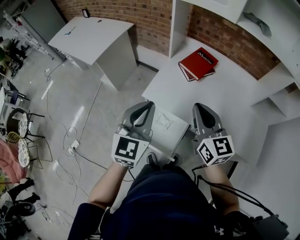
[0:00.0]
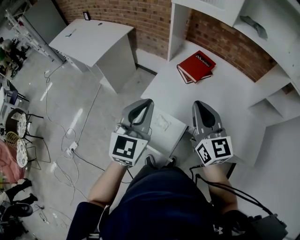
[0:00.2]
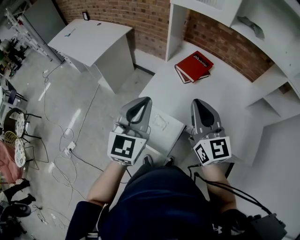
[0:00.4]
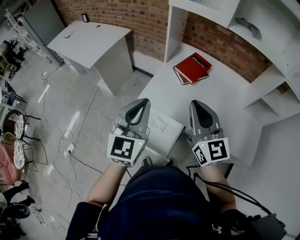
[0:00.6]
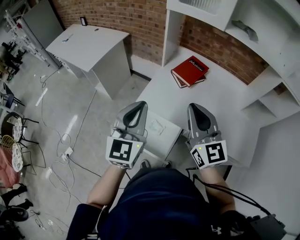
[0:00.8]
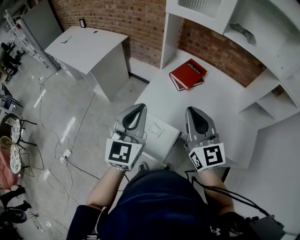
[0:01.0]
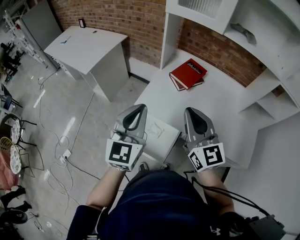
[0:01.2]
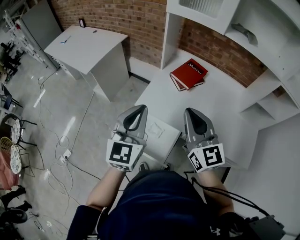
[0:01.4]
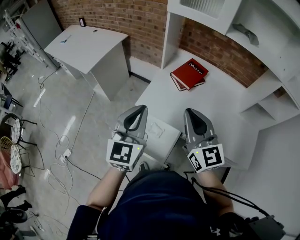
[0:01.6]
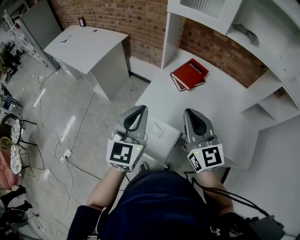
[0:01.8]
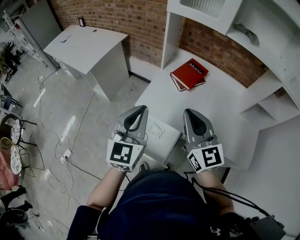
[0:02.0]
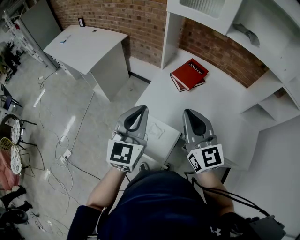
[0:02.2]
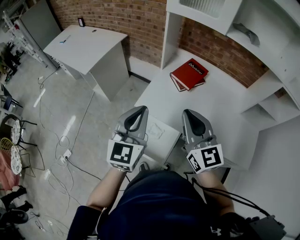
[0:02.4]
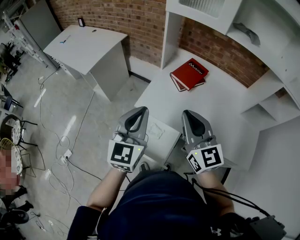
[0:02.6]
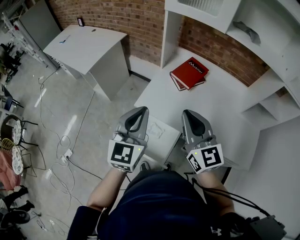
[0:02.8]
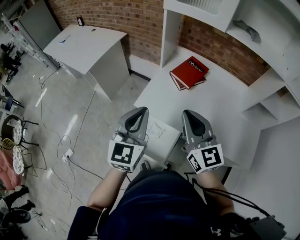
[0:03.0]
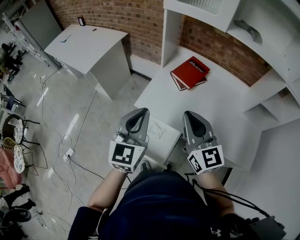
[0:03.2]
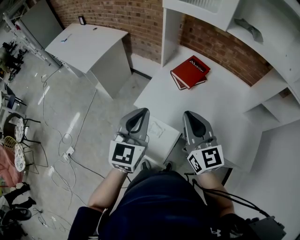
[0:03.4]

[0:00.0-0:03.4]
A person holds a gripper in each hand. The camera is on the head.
0.0 to 1.6 s: The right gripper changes place by roughly 5 cm.
1.6 to 3.4 s: The grippers move only a little.

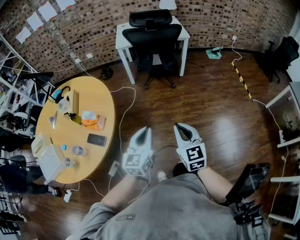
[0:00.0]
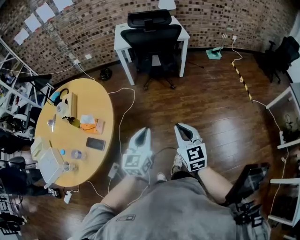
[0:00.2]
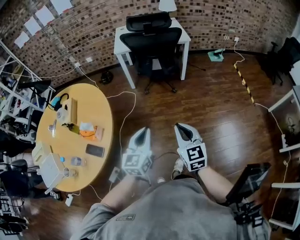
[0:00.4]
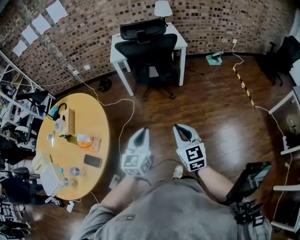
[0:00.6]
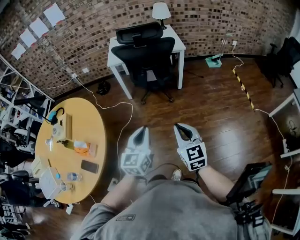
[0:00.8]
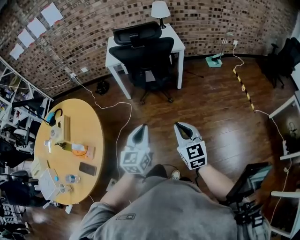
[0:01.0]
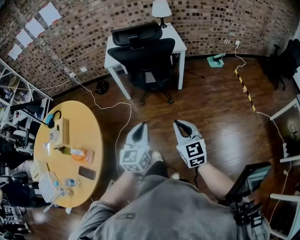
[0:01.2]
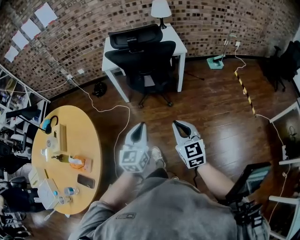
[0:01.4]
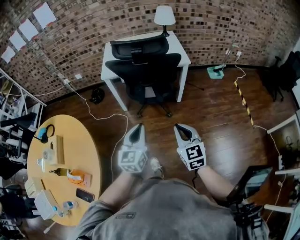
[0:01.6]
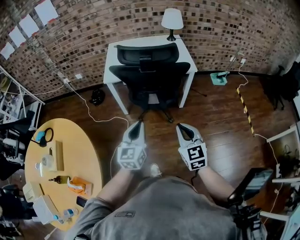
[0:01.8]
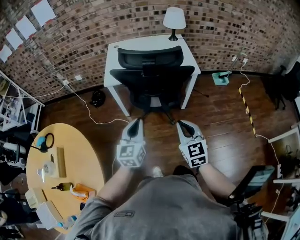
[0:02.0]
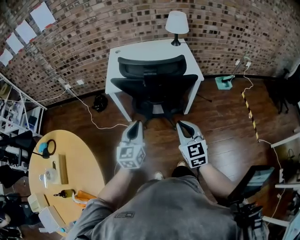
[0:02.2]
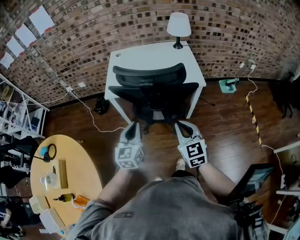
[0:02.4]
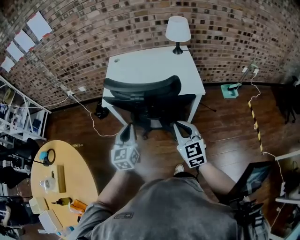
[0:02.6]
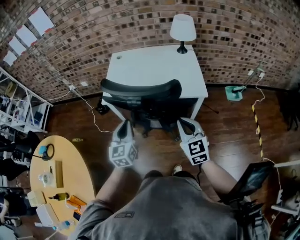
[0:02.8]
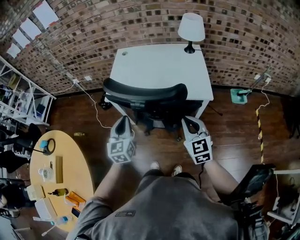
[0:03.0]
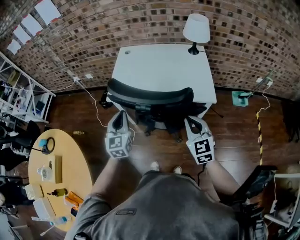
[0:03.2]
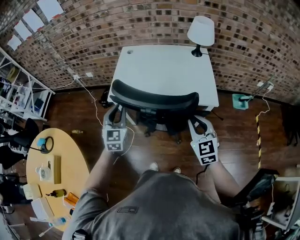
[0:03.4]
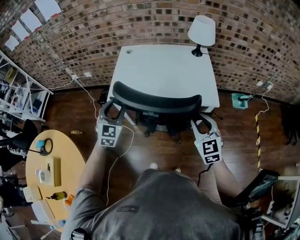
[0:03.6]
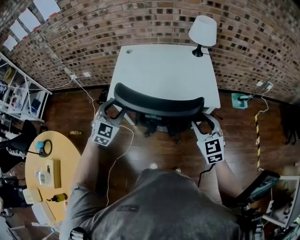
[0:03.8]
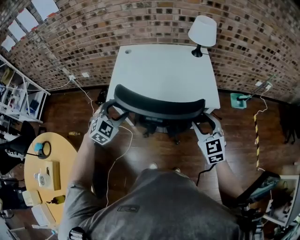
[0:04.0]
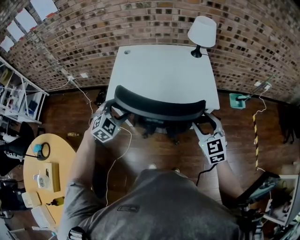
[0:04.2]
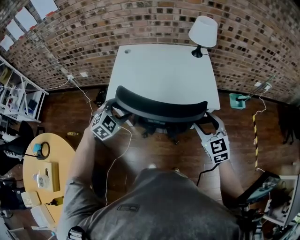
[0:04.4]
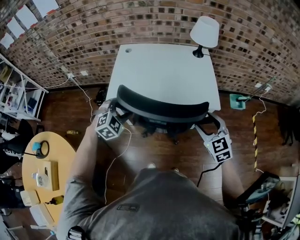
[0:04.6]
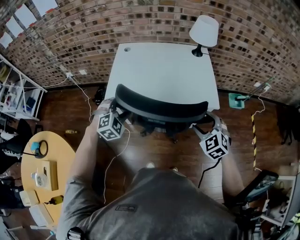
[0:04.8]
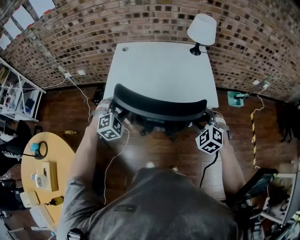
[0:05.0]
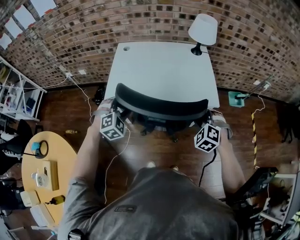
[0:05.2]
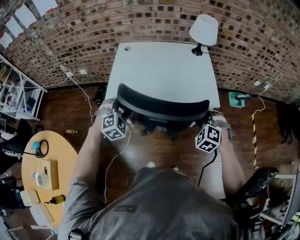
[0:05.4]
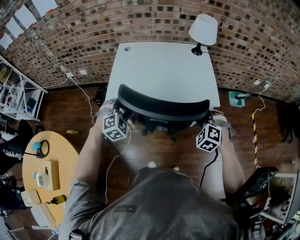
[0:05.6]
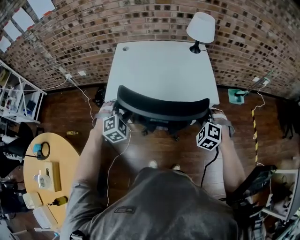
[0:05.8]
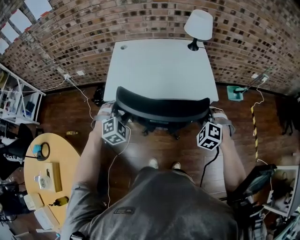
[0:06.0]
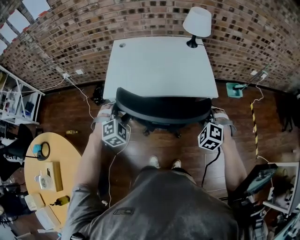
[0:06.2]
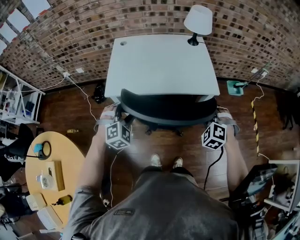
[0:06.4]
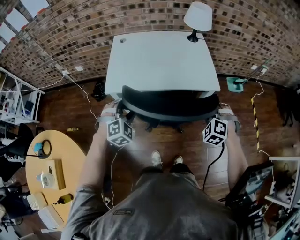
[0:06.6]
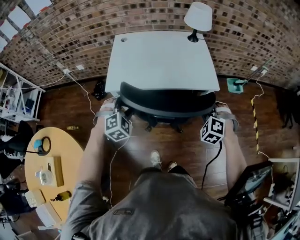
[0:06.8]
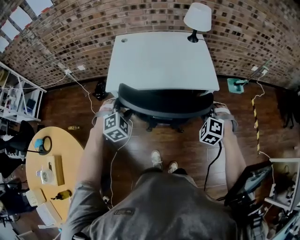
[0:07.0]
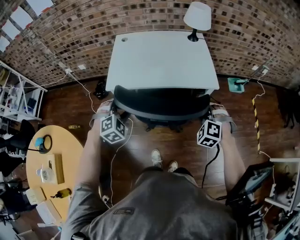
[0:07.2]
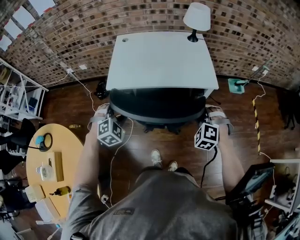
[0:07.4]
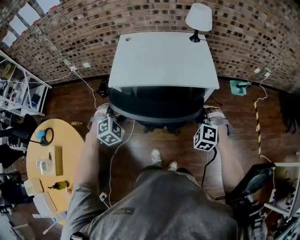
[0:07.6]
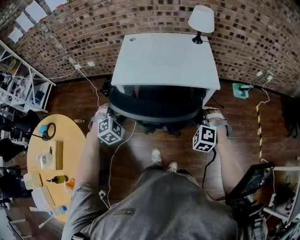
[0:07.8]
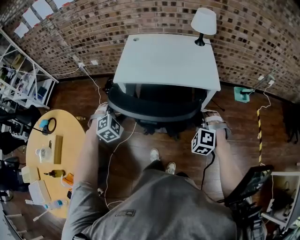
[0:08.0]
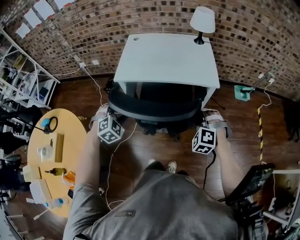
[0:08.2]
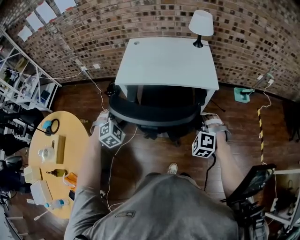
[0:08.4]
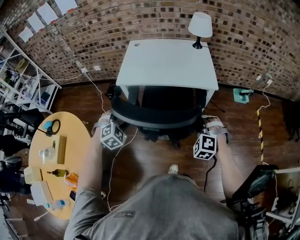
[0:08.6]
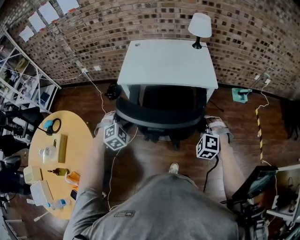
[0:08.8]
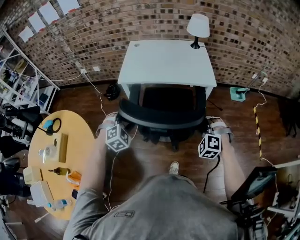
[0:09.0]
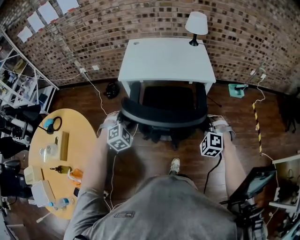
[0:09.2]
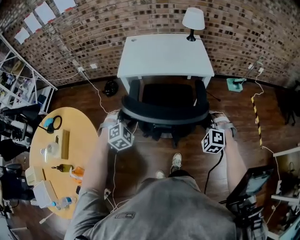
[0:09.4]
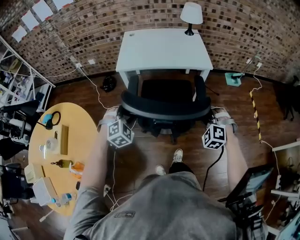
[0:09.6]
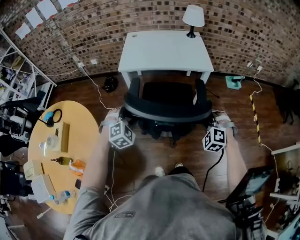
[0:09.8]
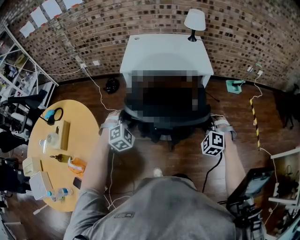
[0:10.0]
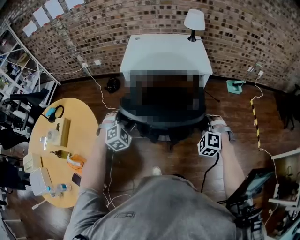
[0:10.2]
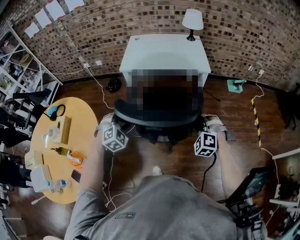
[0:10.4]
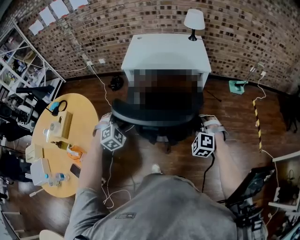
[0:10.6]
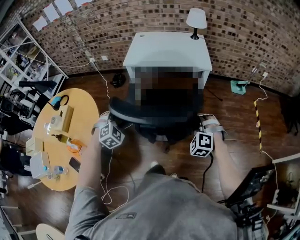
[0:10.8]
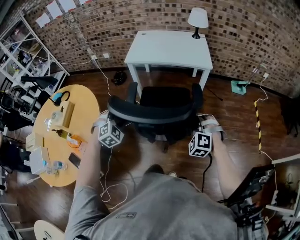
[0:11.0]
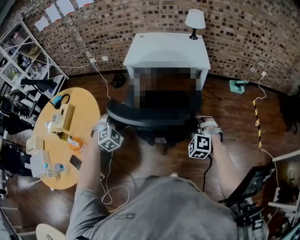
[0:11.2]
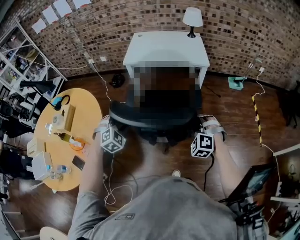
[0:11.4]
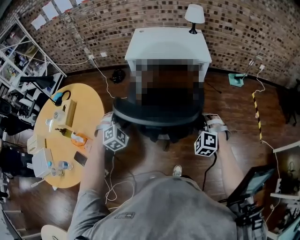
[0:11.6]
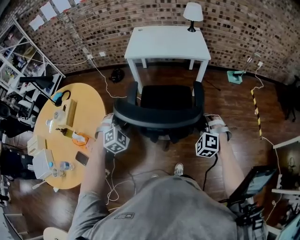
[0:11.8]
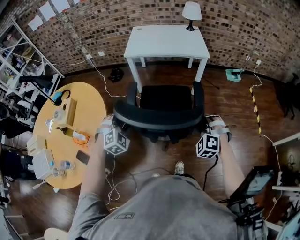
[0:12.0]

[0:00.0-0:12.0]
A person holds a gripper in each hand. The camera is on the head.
0.0 to 1.6 s: Both grippers move forward, some 35 cm.
1.6 to 3.0 s: The grippers both shift forward by approximately 35 cm. The left gripper changes its angle by approximately 20 degrees.
3.0 to 4.4 s: The right gripper is displaced forward by approximately 5 cm, and opens up. The left gripper is displaced forward by some 10 cm, rotates some 70 degrees, and opens up.
4.4 to 6.0 s: The right gripper is displaced downward by some 5 cm, and rotates around the line of its fingers by some 40 degrees, counterclockwise from behind.
6.0 to 7.6 s: The grippers both shift backward by roughly 10 cm.
7.6 to 9.0 s: The grippers both shift backward by about 15 cm.
9.0 to 10.4 s: Both grippers travel together backward, about 15 cm.
10.4 to 12.0 s: Both grippers move backward, roughly 15 cm.

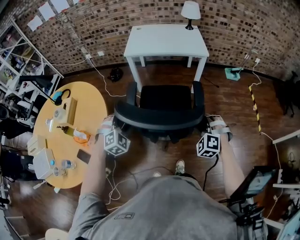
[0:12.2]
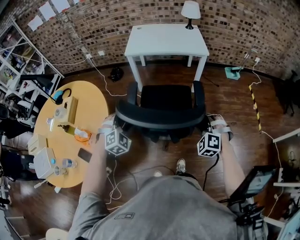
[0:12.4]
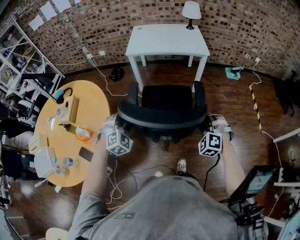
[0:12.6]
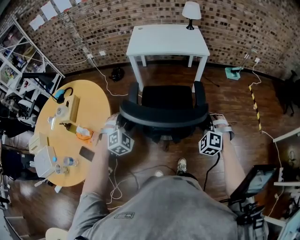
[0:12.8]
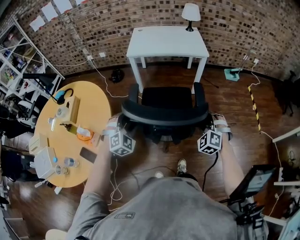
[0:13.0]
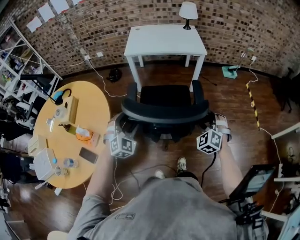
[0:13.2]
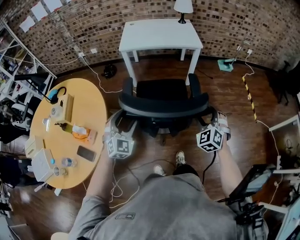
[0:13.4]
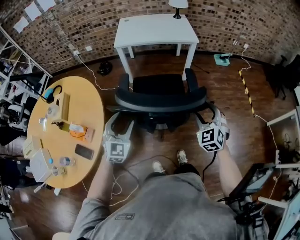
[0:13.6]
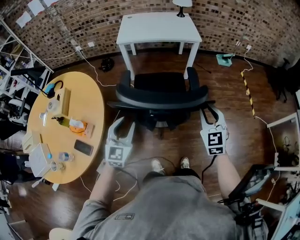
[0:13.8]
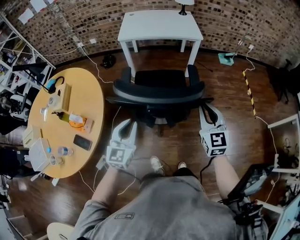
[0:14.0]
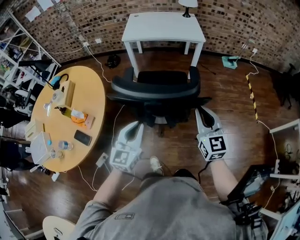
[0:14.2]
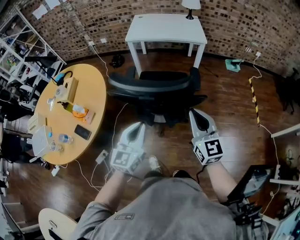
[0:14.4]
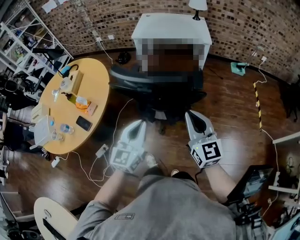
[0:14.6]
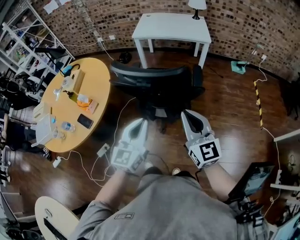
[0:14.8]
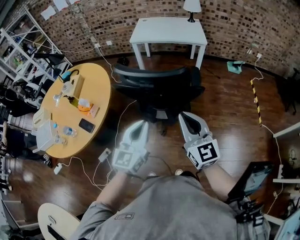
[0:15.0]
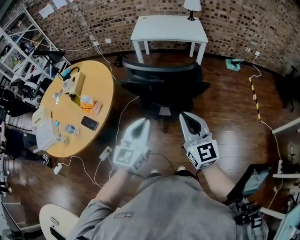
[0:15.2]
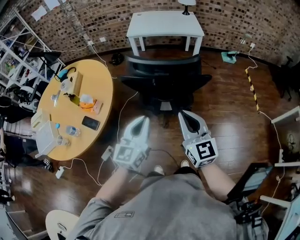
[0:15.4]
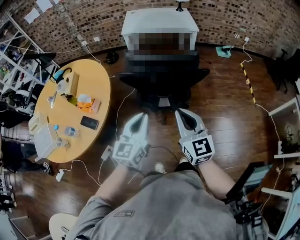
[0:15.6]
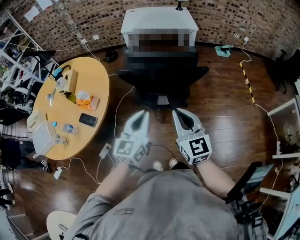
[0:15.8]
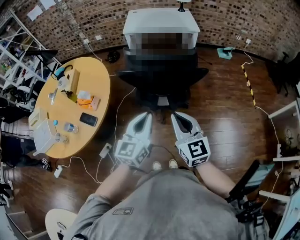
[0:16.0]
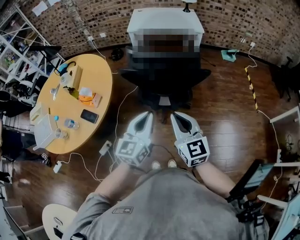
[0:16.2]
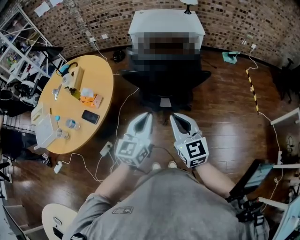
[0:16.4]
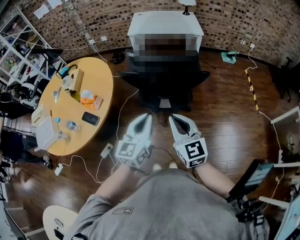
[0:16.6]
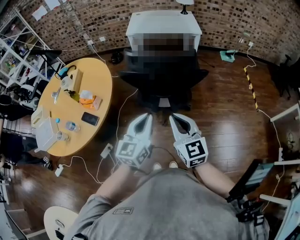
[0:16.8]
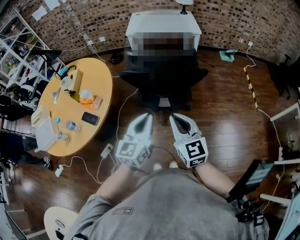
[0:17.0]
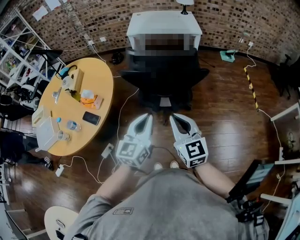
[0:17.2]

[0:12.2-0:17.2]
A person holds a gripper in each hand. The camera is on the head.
12.2 to 13.8 s: The left gripper travels backward by about 10 cm, rotates around the line of its fingers by about 40 degrees, counterclockwise from behind, and closes its fingers. Meanwhile the right gripper travels upward and backward by some 10 cm, rotates around the line of its fingers by about 50 degrees, clockwise from behind, and opens, then closes again.
13.8 to 15.6 s: The left gripper moves backward and upward, some 20 cm, swivels roughly 20 degrees, and closes. Meanwhile the right gripper is displaced backward and to the left by about 25 cm, and turns by about 30 degrees.
15.6 to 17.2 s: The grippers make only small movements.

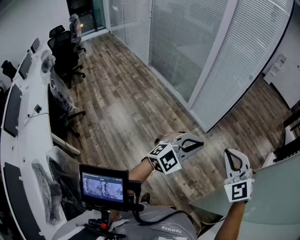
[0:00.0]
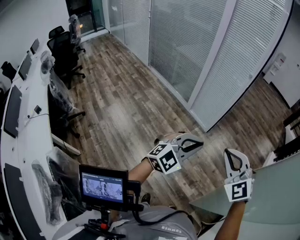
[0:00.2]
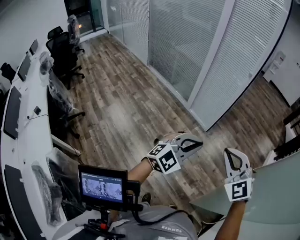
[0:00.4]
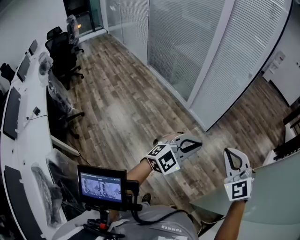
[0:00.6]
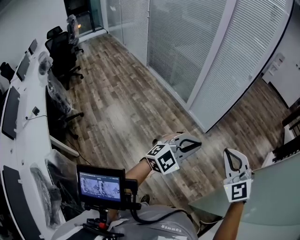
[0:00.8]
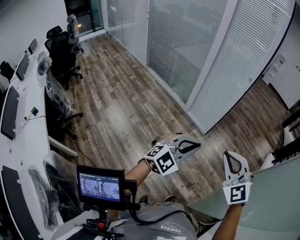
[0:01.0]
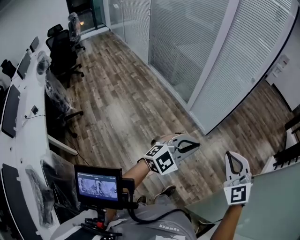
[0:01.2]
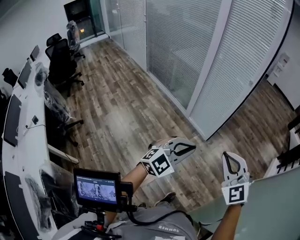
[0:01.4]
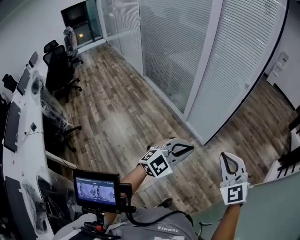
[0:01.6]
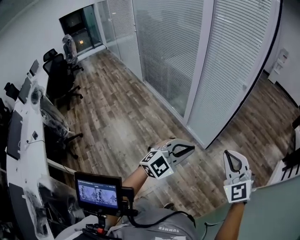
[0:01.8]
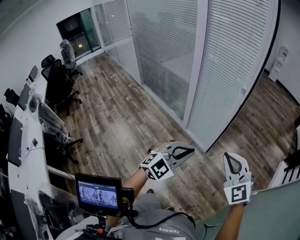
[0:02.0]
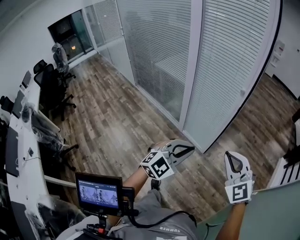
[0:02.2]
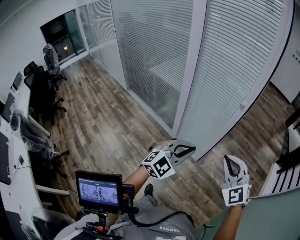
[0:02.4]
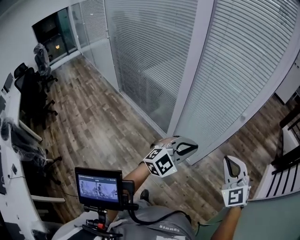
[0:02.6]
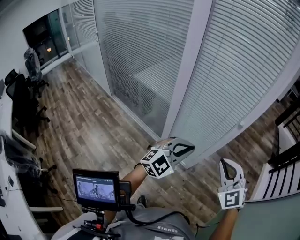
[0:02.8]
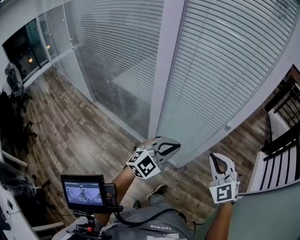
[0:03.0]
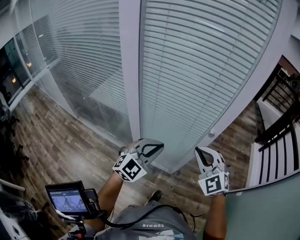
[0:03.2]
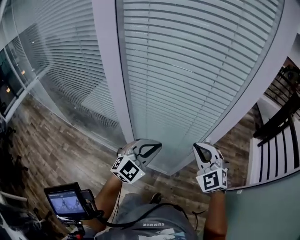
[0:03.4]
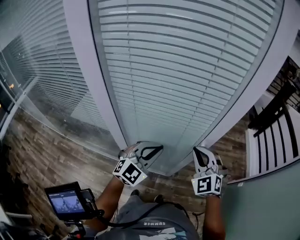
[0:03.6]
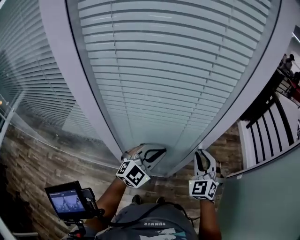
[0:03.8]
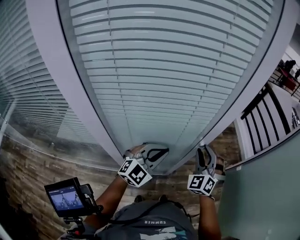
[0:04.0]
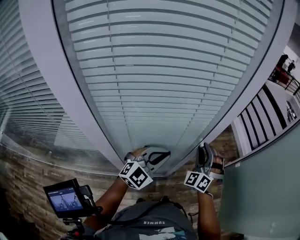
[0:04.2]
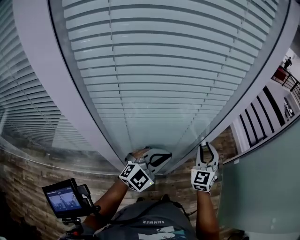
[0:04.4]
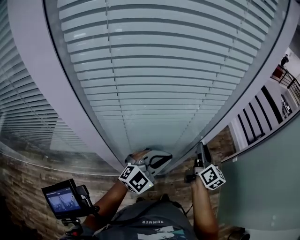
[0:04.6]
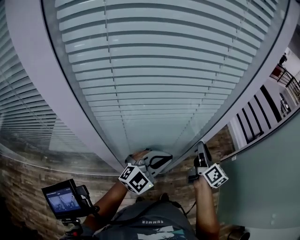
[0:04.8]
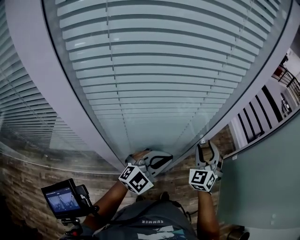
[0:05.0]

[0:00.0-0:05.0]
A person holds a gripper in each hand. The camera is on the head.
0.0 to 1.6 s: The two grippers go roughly 20 cm forward.
1.6 to 3.4 s: Both grippers are carried forward, some 70 cm. The right gripper turns by roughly 30 degrees.
3.4 to 5.0 s: The right gripper shifts by approximately 10 cm, swivels approximately 60 degrees, and opens up. The left gripper ends up approximately 5 cm from where it was, and turns by about 40 degrees.
